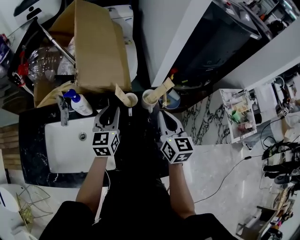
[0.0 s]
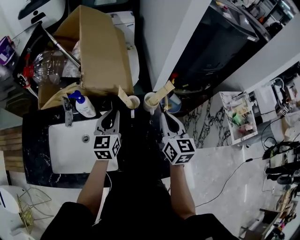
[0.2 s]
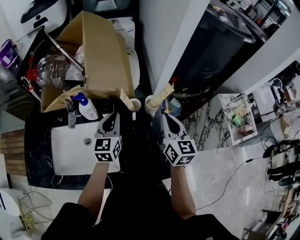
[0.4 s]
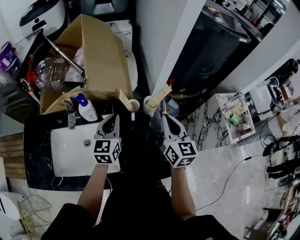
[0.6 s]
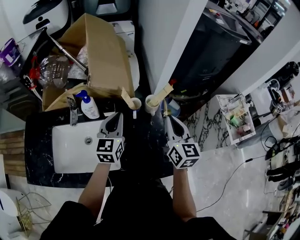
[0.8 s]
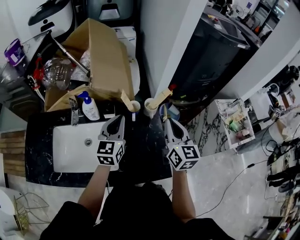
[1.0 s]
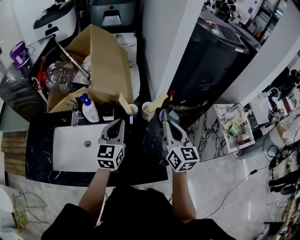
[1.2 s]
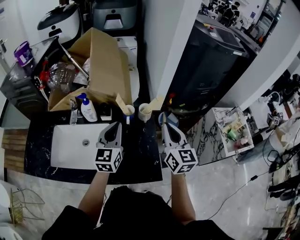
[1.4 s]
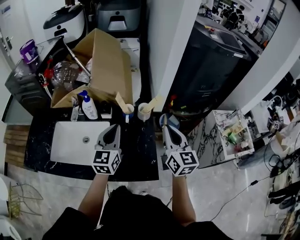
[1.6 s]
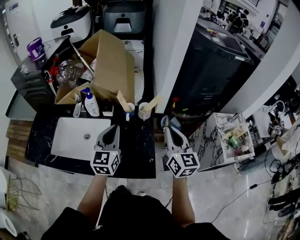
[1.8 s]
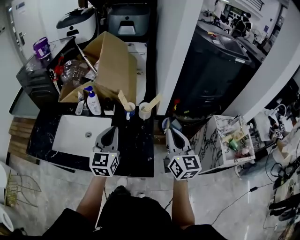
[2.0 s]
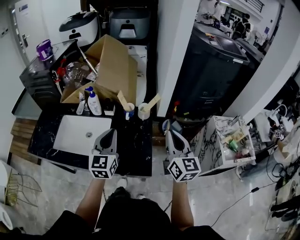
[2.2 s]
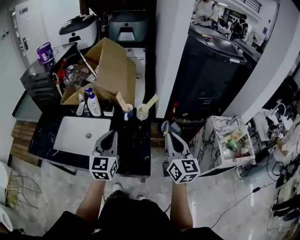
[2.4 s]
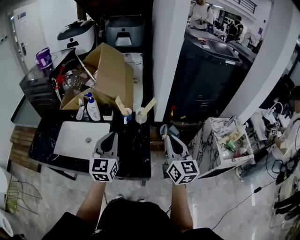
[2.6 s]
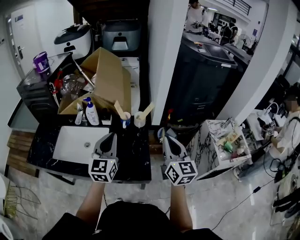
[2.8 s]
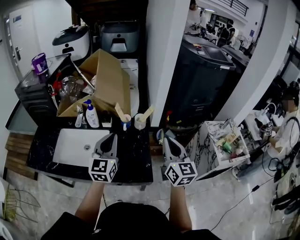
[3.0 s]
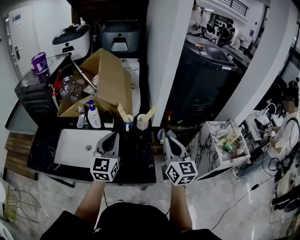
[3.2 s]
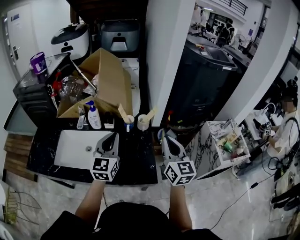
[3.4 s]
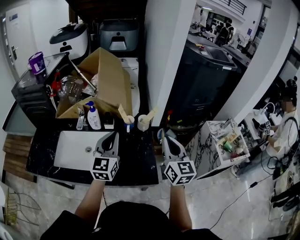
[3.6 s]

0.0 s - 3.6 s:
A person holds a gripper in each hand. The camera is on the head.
0.0 s - 1.8 s: The right gripper shifts approximately 20 cm backward, upward and to the right. Meanwhile the left gripper heads backward and upward, covering roughly 20 cm, and closes up.
1.8 s - 3.6 s: The left gripper travels backward and back again, approximately 10 cm each way. Meanwhile the right gripper changes place by roughly 5 cm.

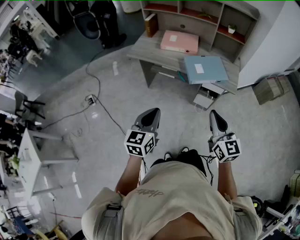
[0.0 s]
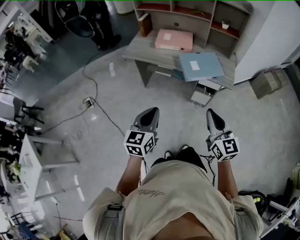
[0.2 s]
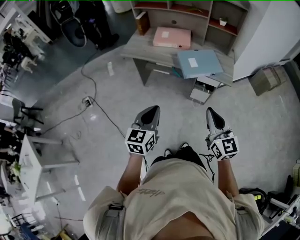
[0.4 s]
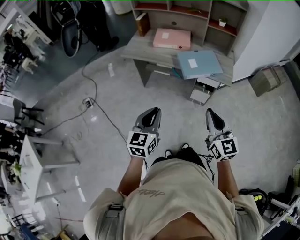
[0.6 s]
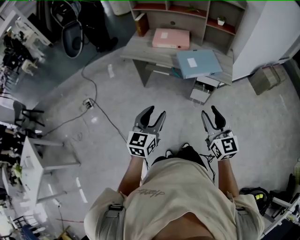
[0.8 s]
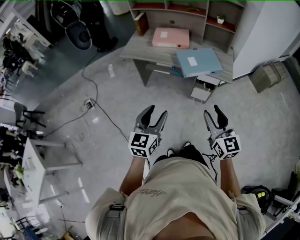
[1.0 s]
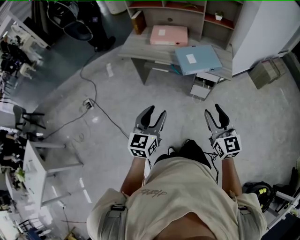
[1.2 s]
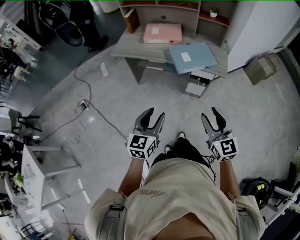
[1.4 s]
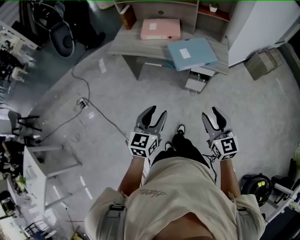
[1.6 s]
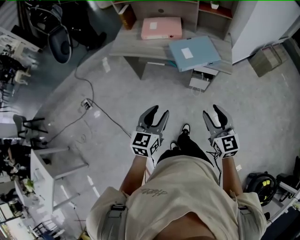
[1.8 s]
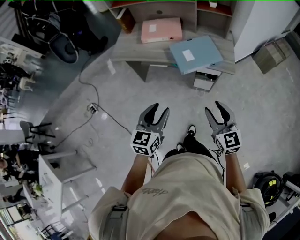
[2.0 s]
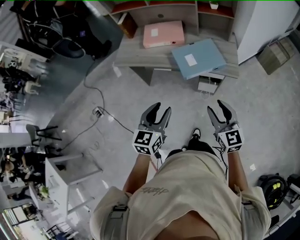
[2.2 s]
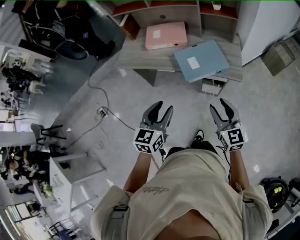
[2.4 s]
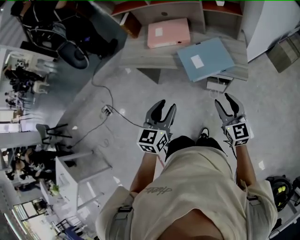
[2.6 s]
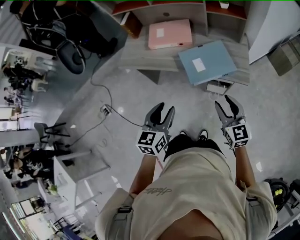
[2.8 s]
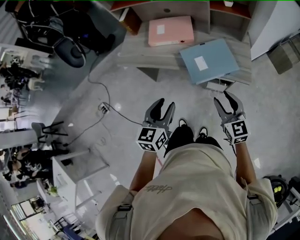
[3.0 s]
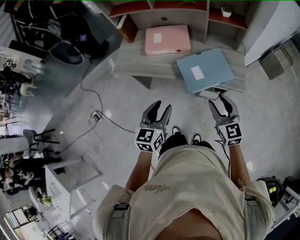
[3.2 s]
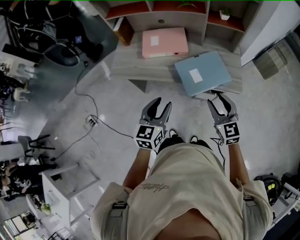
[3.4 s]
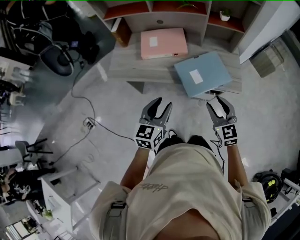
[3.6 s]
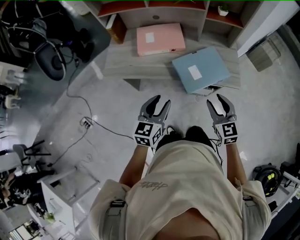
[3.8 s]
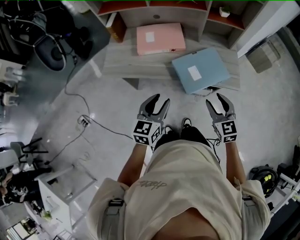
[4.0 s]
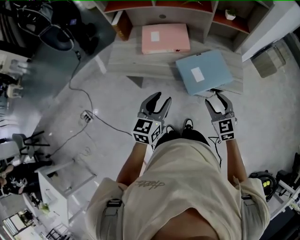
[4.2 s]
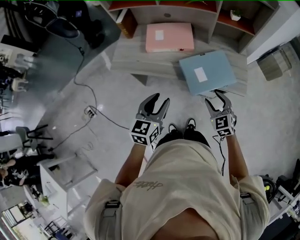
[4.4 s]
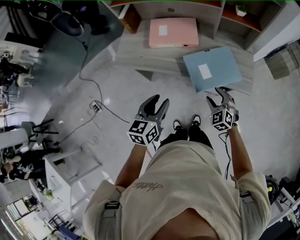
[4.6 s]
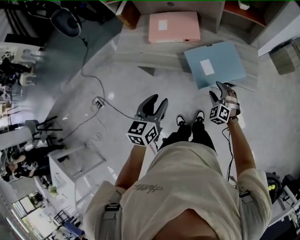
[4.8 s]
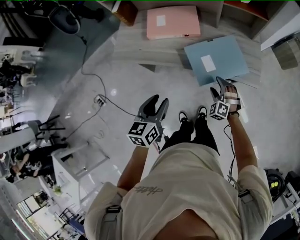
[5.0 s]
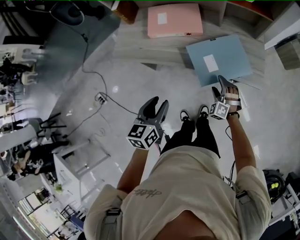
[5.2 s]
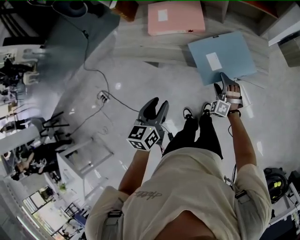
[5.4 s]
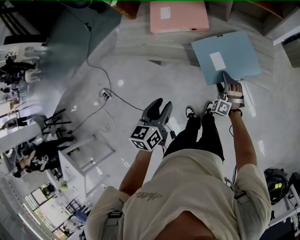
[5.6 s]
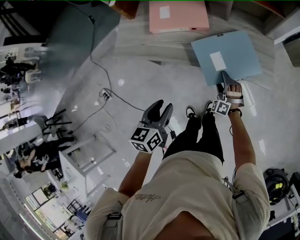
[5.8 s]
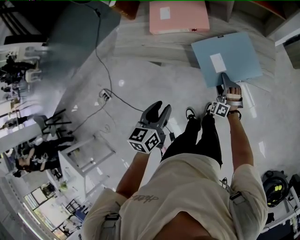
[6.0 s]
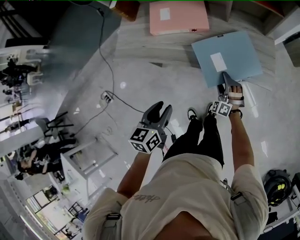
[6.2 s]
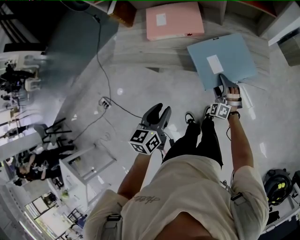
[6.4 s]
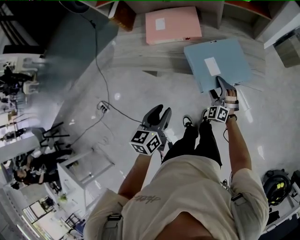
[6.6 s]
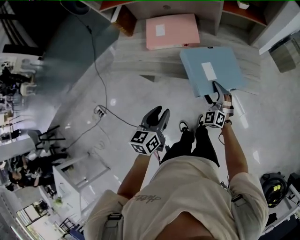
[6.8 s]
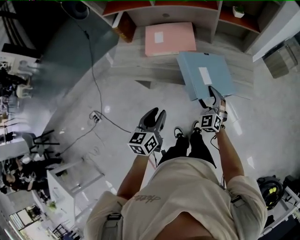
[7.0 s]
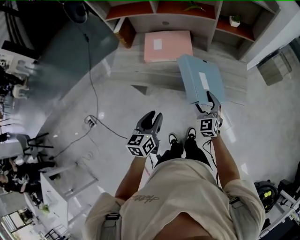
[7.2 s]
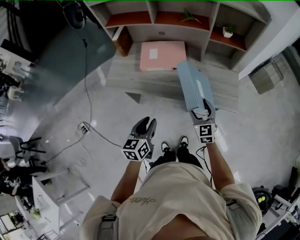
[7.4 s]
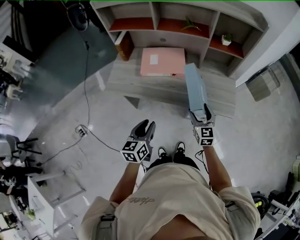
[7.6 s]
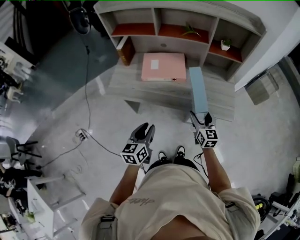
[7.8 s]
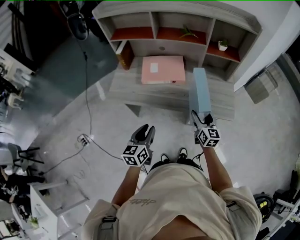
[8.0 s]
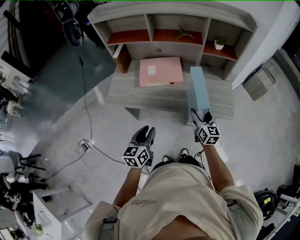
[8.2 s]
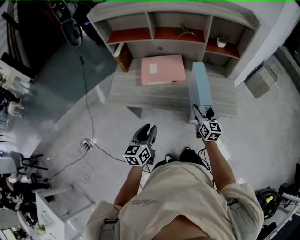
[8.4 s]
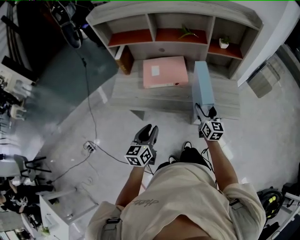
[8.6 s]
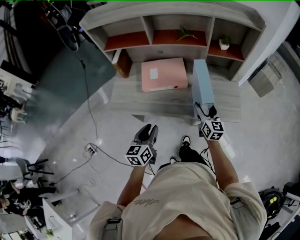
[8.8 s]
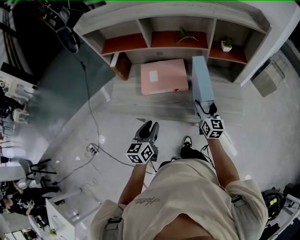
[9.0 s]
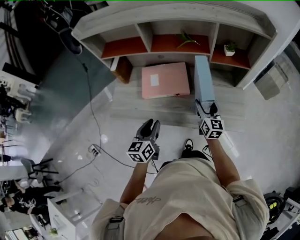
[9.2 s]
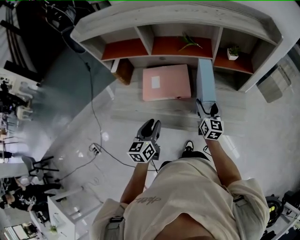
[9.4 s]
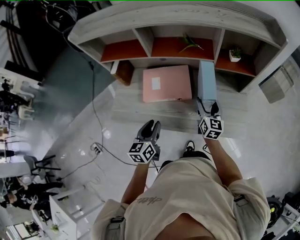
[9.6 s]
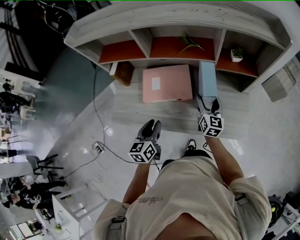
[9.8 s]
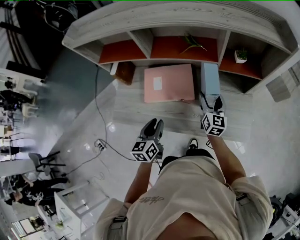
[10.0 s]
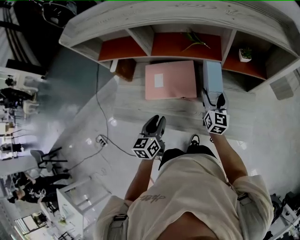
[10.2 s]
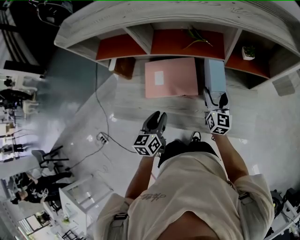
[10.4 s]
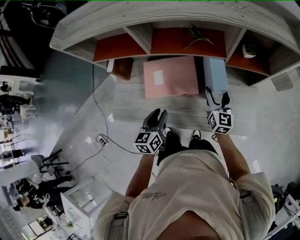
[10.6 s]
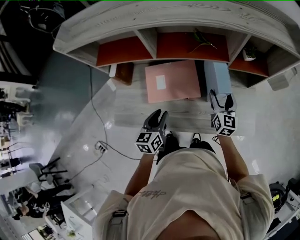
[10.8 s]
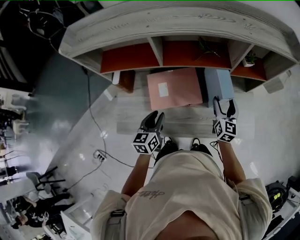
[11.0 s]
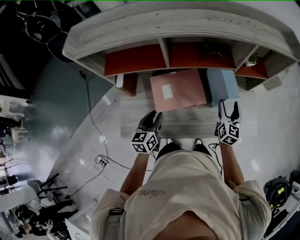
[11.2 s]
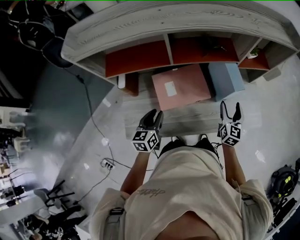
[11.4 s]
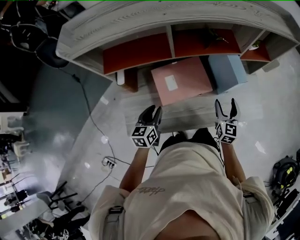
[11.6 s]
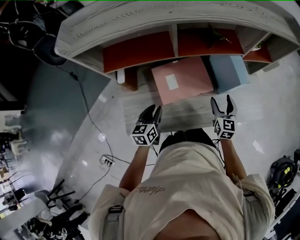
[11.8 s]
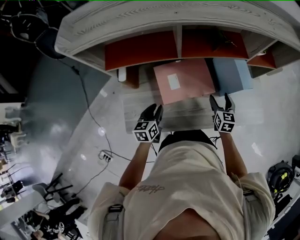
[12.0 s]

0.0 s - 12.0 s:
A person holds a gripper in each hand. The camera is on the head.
0.0 s - 1.6 s: The left gripper moves to the right, some 5 cm, and opens its fingers; the right gripper travels downward by roughly 5 cm, and opens up.
1.6 s - 3.0 s: The two grippers go roughly 20 cm forward.
3.0 s - 4.4 s: The right gripper moves forward and downward, approximately 10 cm, and swivels some 30 degrees. The left gripper goes about 10 cm forward.
4.4 s - 6.0 s: The right gripper is displaced downward by roughly 20 cm, twists some 40 degrees counterclockwise, seen from behind, and opens up. Meanwhile the left gripper is displaced downward by about 10 cm.
6.0 s - 7.6 s: The right gripper heads upward, covering roughly 20 cm, and rotates around the line of its fingers by about 70 degrees, clockwise from behind.
7.6 s - 9.0 s: The two grippers go approximately 10 cm forward. The right gripper swivels some 20 degrees.
9.0 s - 10.4 s: The grippers both shift forward by roughly 15 cm.
10.4 s - 12.0 s: The left gripper goes some 20 cm to the left and downward. The right gripper travels downward and to the left by roughly 10 cm, and changes its angle by roughly 20 degrees.

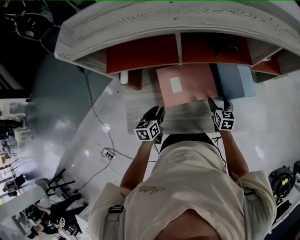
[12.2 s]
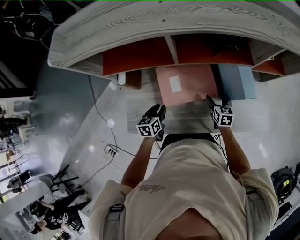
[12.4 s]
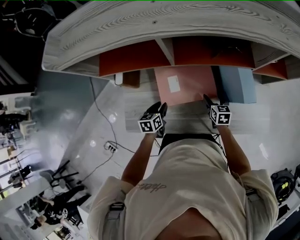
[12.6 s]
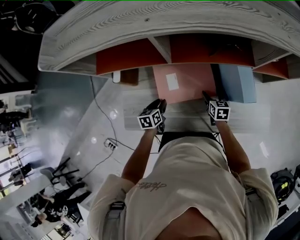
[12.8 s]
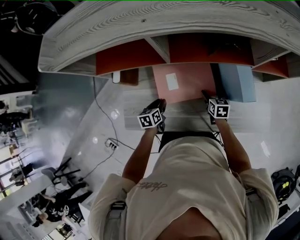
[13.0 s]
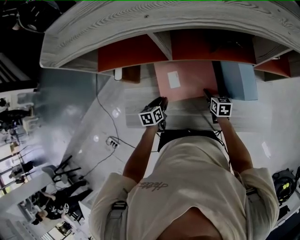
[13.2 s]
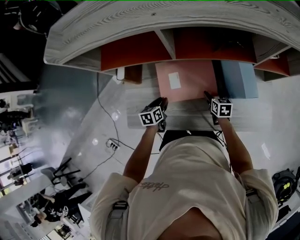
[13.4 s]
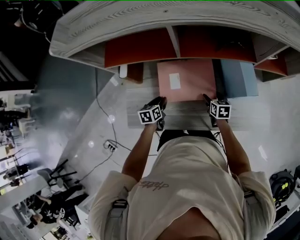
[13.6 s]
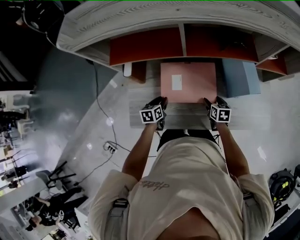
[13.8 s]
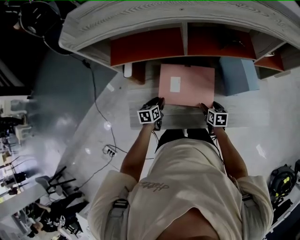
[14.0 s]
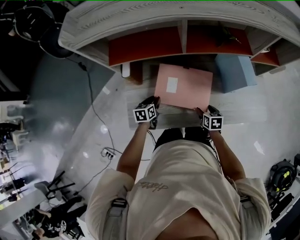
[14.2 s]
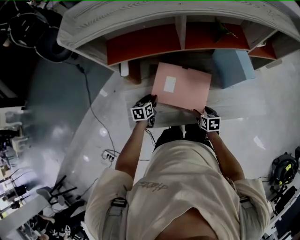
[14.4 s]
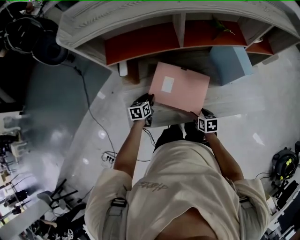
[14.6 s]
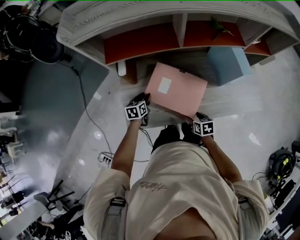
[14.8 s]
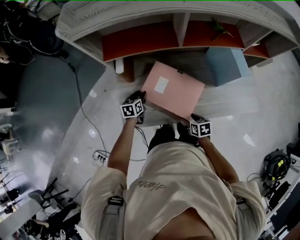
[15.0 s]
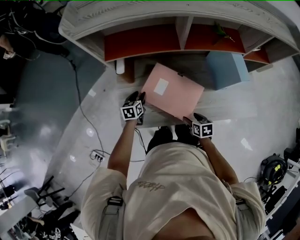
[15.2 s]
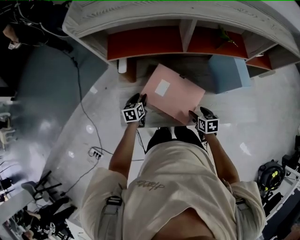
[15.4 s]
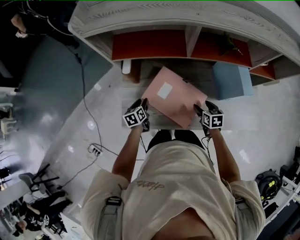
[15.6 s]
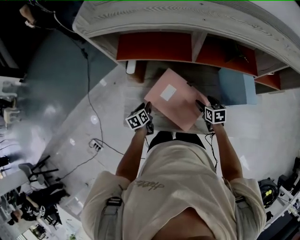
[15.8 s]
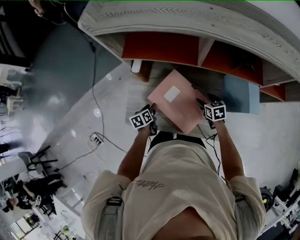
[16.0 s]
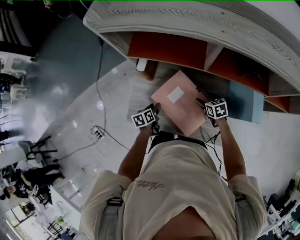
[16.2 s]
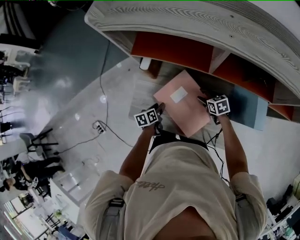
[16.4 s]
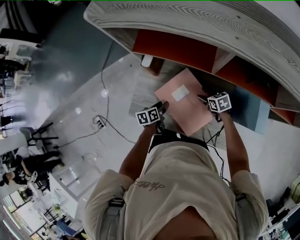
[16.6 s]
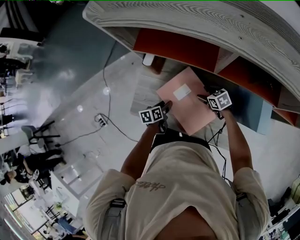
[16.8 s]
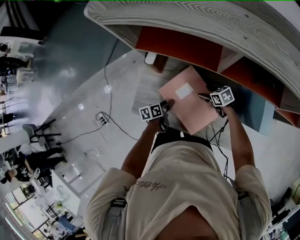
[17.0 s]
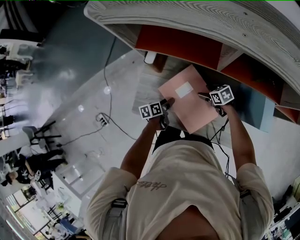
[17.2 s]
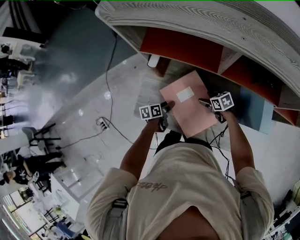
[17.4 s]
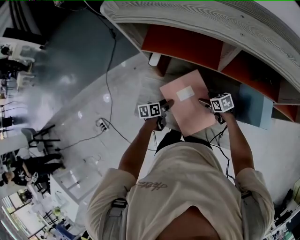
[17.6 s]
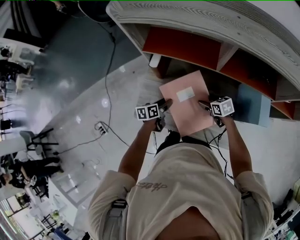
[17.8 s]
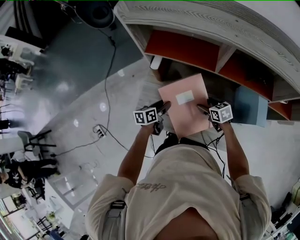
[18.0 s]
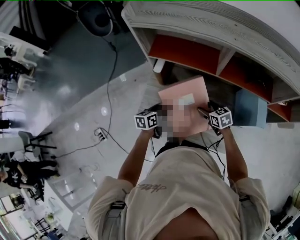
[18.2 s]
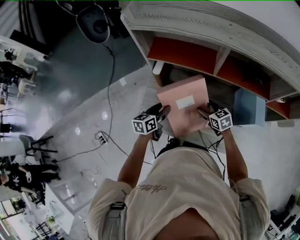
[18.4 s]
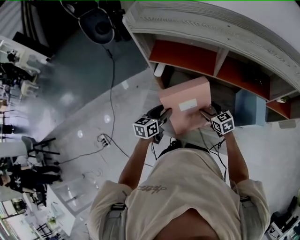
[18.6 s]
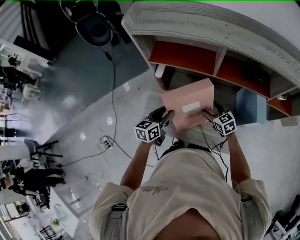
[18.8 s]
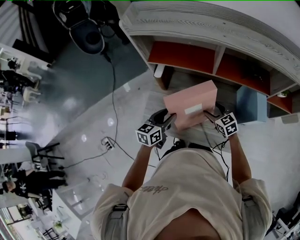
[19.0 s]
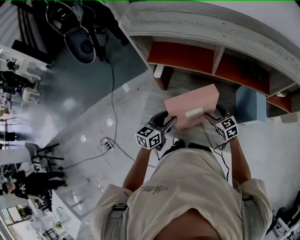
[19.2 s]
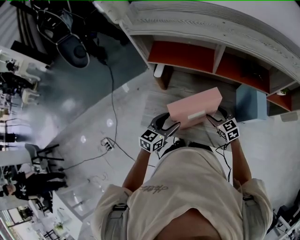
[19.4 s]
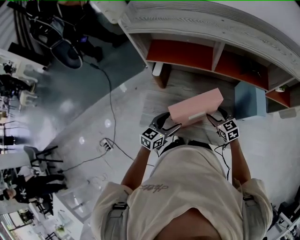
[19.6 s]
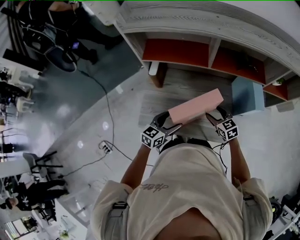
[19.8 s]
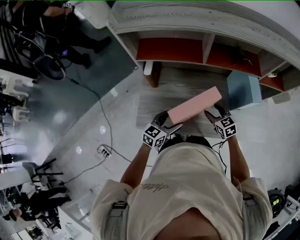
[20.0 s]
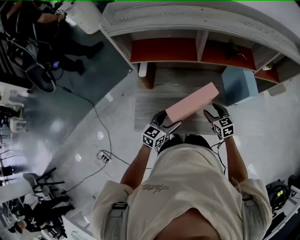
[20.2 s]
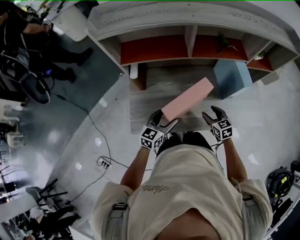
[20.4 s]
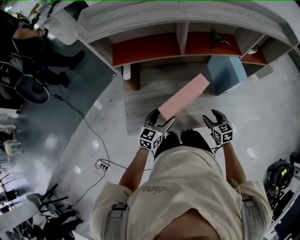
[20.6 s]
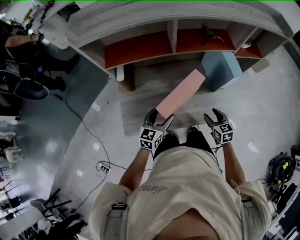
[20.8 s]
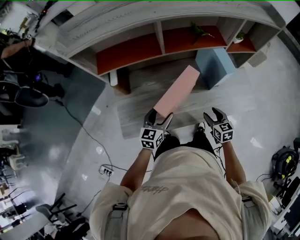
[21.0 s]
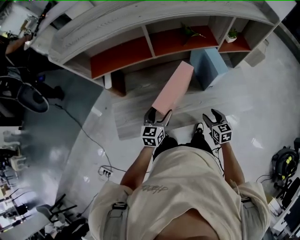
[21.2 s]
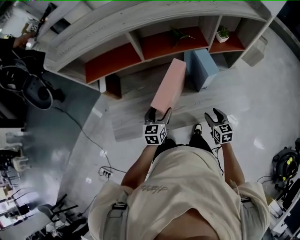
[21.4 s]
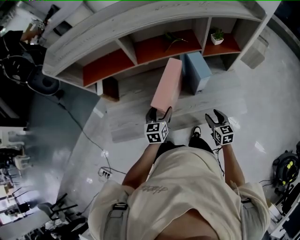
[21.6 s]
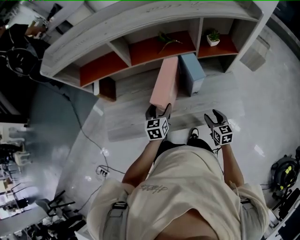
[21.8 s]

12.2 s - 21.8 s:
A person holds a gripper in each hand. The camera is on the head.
12.2 s - 13.8 s: Both grippers move downward, approximately 5 cm.
13.8 s - 15.4 s: The left gripper shifts some 10 cm to the left. Meanwhile the right gripper is displaced backward and to the left by approximately 10 cm.
15.4 s - 17.0 s: The right gripper travels forward by about 20 cm, and changes its angle by some 50 degrees; the left gripper moves backward, roughly 5 cm, and rolls counterclockwise, seen from behind, by approximately 40 degrees.
17.0 s - 18.6 s: The right gripper shifts about 10 cm upward, and turns by approximately 30 degrees; the left gripper goes some 20 cm upward, and swivels some 40 degrees.
18.6 s - 20.2 s: The left gripper moves to the right and backward, approximately 10 cm, turns by about 30 degrees, and opens up. Meanwhile the right gripper travels backward and to the right by roughly 10 cm, and changes its angle by approximately 20 degrees.
20.2 s - 21.8 s: The right gripper is displaced to the right by about 25 cm, and changes its angle by approximately 20 degrees. Meanwhile the left gripper moves to the right and forward, about 20 cm, and turns by some 20 degrees.
